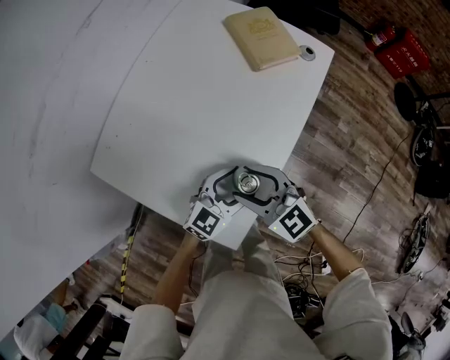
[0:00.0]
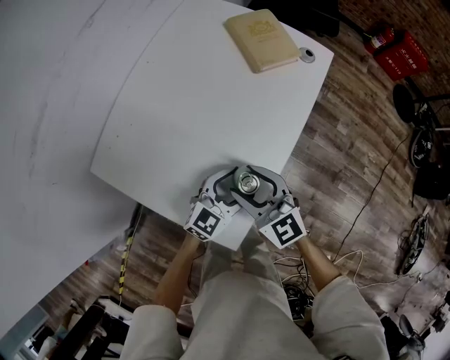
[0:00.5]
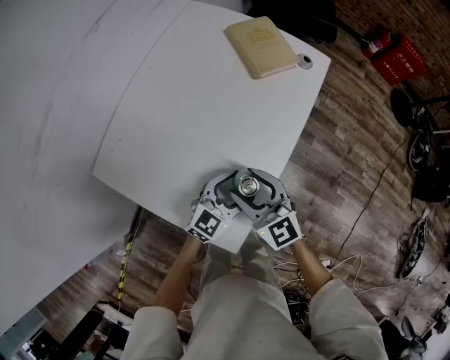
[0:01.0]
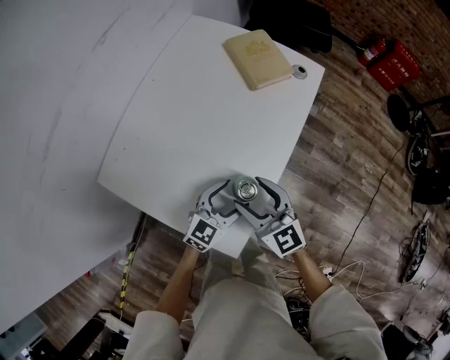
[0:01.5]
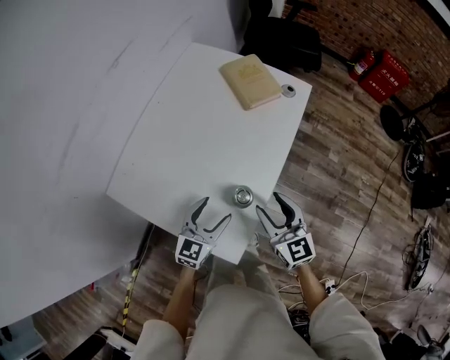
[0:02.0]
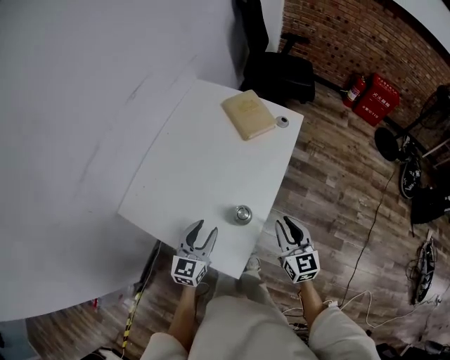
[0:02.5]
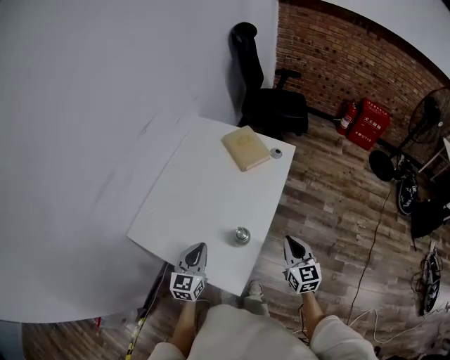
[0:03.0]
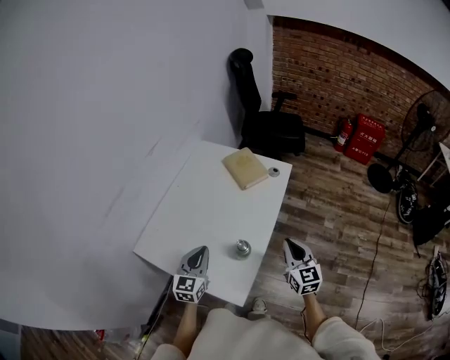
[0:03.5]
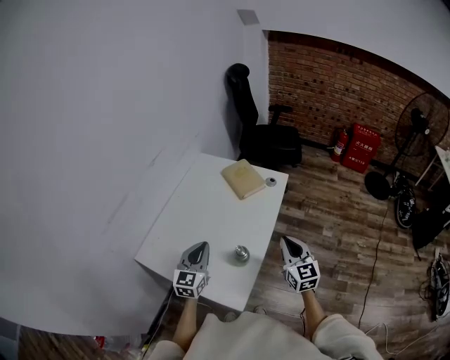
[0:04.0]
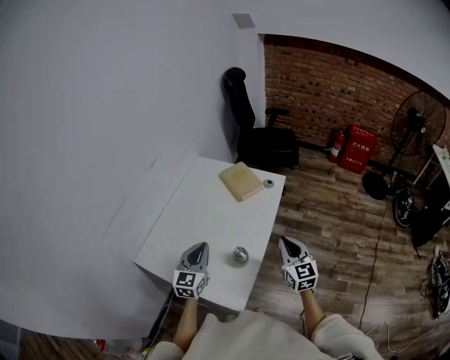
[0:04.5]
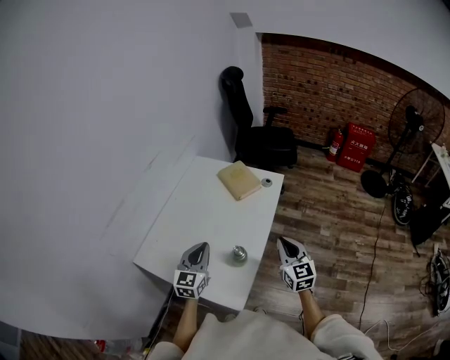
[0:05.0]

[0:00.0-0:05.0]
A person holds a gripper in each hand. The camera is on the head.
0:00.0 to 0:02.5: The right gripper shifts roughly 15 cm to the right, changes its angle by some 40 degrees, and closes; the left gripper shifts roughly 15 cm to the left and upward, rotates about 30 degrees, and closes.
0:02.5 to 0:05.0: Both grippers travel together upward, roughly 10 cm. The left gripper closes.

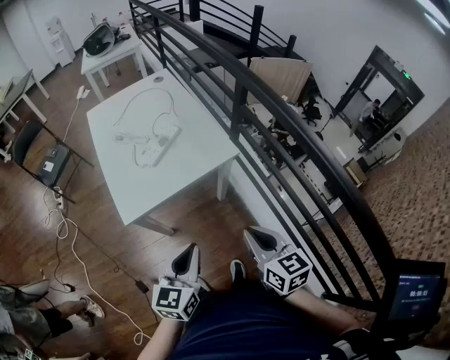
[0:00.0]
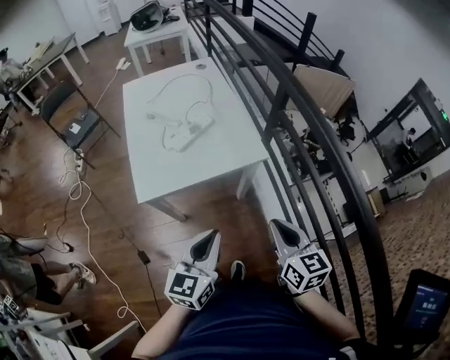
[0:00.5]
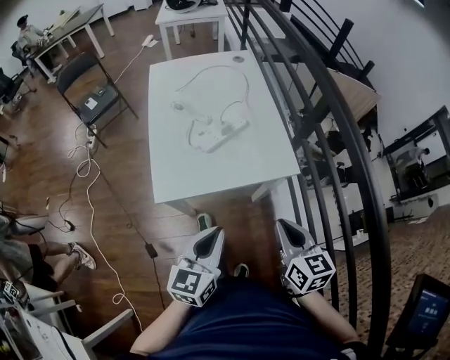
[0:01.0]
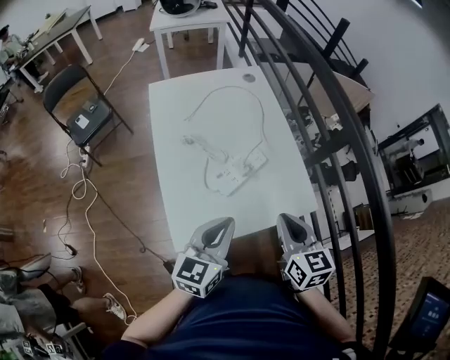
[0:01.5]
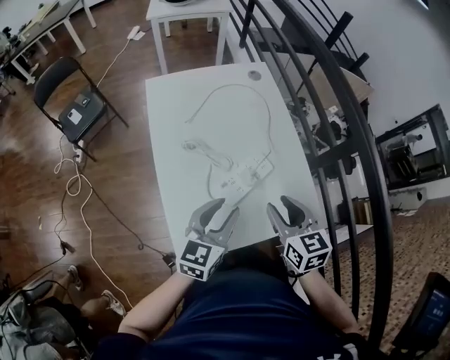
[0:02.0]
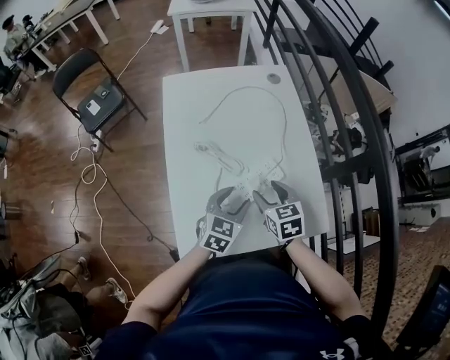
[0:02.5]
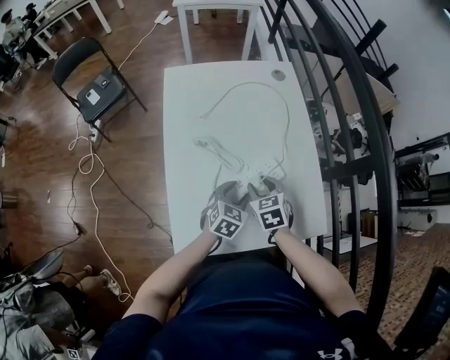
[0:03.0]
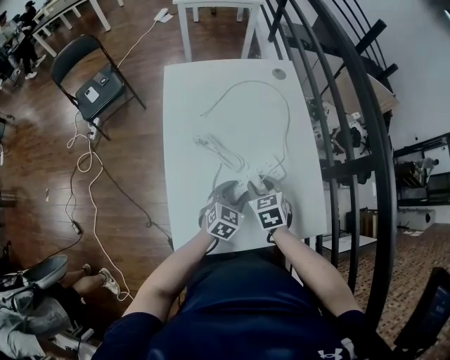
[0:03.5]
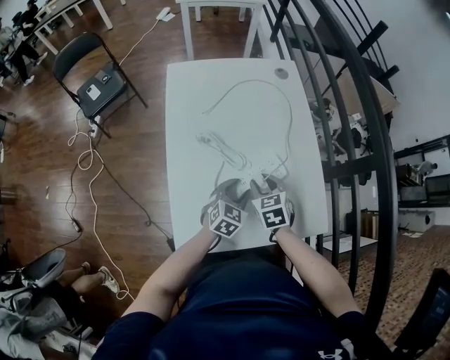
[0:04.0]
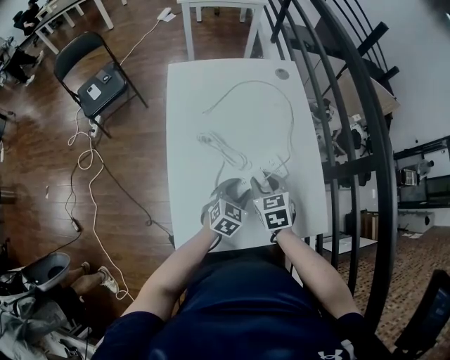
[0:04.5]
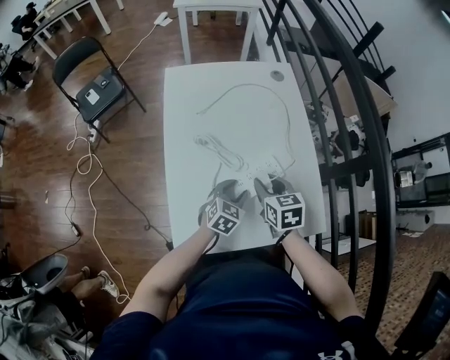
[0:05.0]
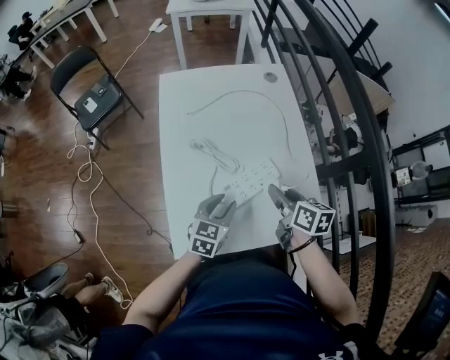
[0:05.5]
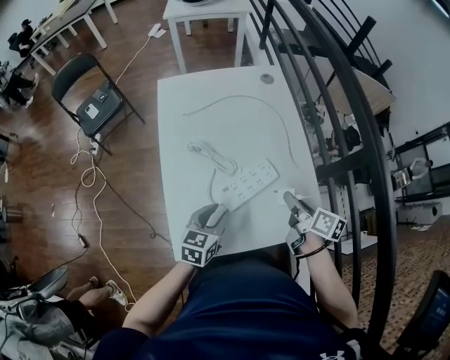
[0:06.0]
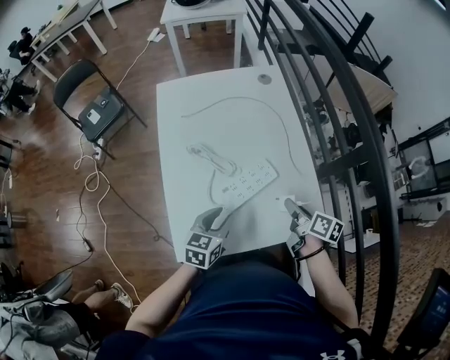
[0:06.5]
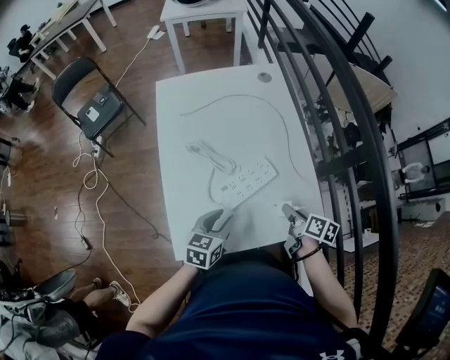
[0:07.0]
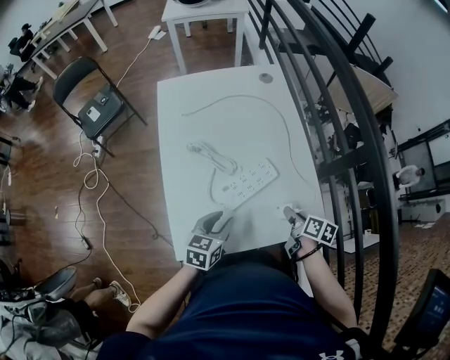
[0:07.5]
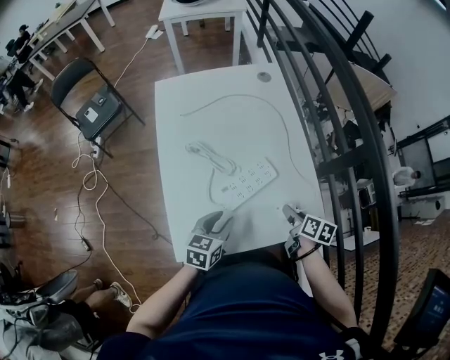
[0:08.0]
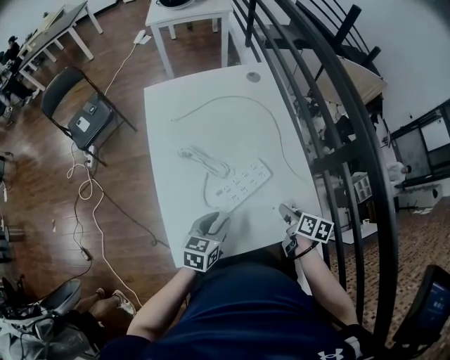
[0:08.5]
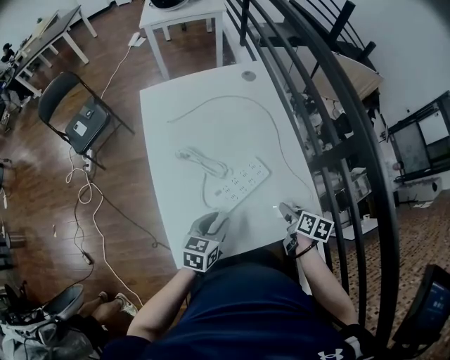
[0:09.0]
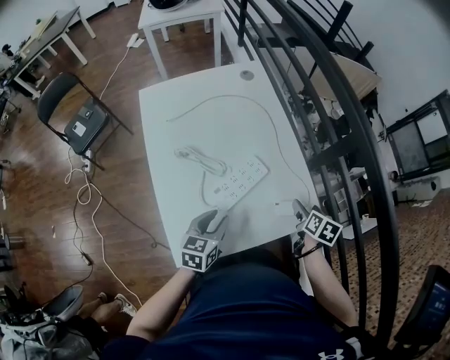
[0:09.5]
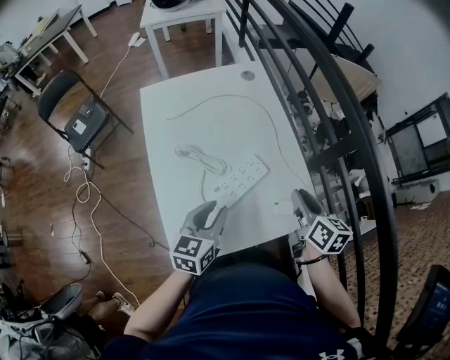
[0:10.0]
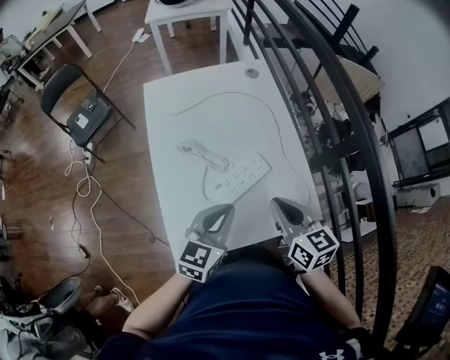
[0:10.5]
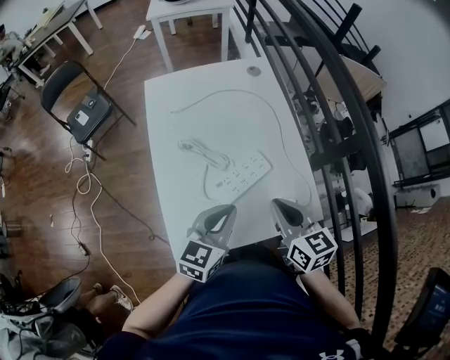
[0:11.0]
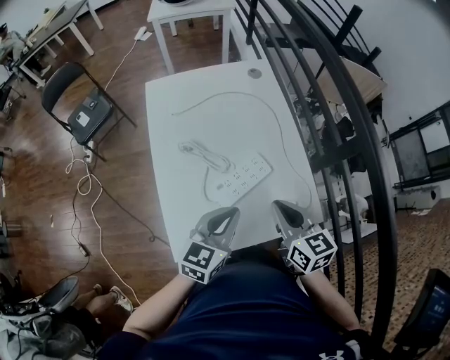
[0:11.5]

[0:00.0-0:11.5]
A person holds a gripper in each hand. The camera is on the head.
0:00.0 to 0:02.0: The grippers both shift forward and to the left by some 40 cm. The right gripper opens up. Meanwhile the left gripper opens its fingers.
0:02.0 to 0:04.0: The right gripper shifts roughly 20 cm downward, forward and to the left, and changes its angle by roughly 30 degrees. The left gripper travels downward by about 20 cm, and swivels approximately 30 degrees.
0:04.0 to 0:06.0: The left gripper heads upward and backward, covering about 10 cm, and rotates about 20 degrees. The right gripper is displaced to the right and upward by approximately 15 cm, and rotates around the line of its fingers by approximately 60 degrees, clockwise from behind.
0:06.0 to 0:07.5: The right gripper moves downward, approximately 10 cm.
0:07.5 to 0:09.5: The right gripper is displaced to the right by about 10 cm, changes its angle by about 30 degrees, and opens.
0:09.5 to 0:11.5: The right gripper shifts some 25 cm to the left and upward, swivels some 50 degrees, and closes up. The left gripper travels upward by about 10 cm, and closes up.

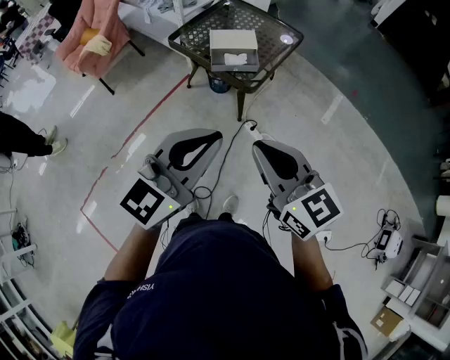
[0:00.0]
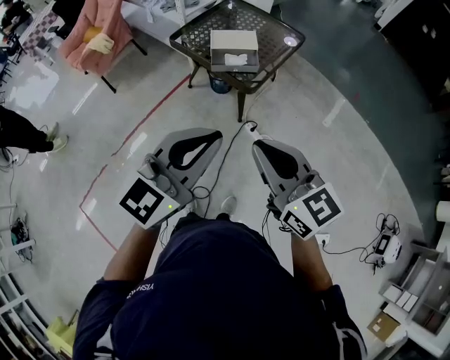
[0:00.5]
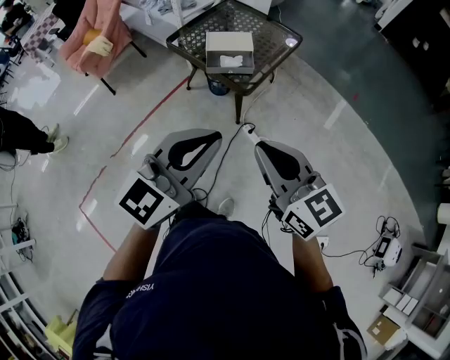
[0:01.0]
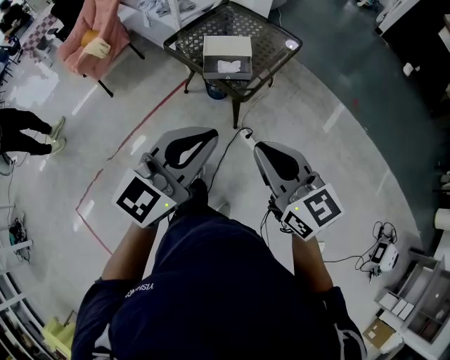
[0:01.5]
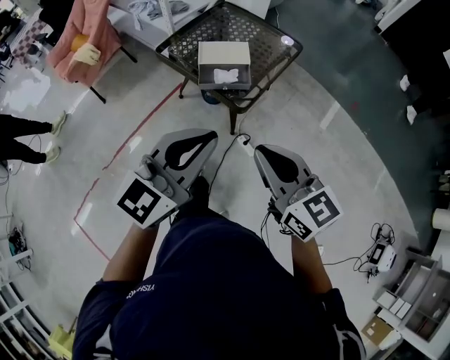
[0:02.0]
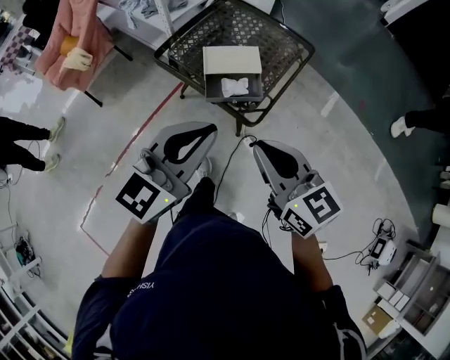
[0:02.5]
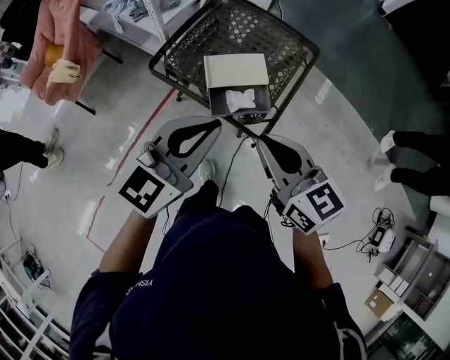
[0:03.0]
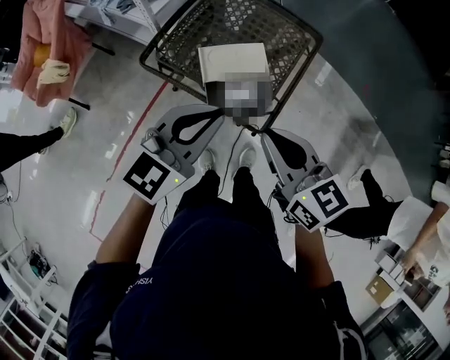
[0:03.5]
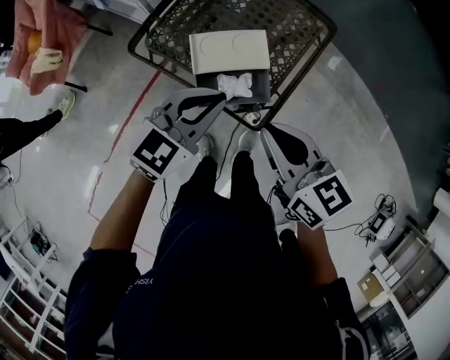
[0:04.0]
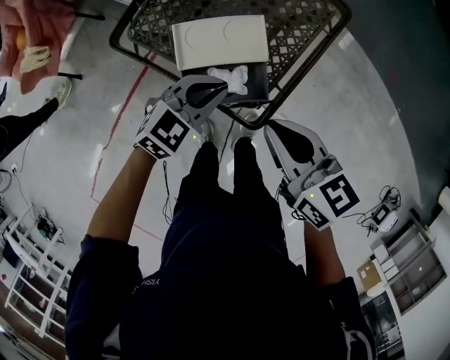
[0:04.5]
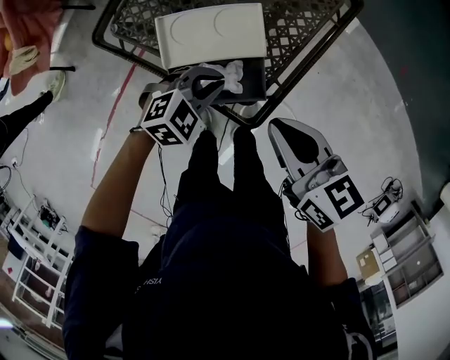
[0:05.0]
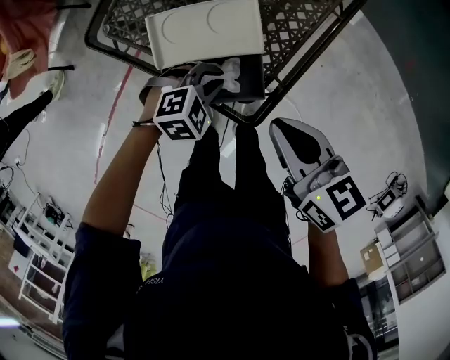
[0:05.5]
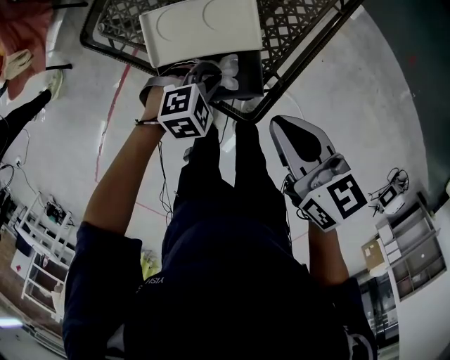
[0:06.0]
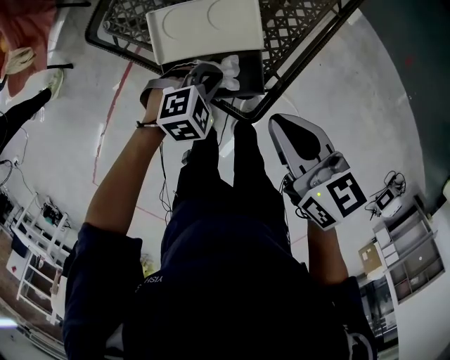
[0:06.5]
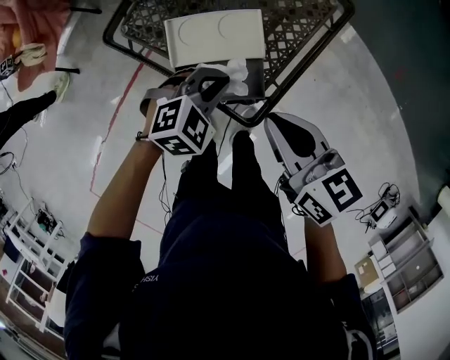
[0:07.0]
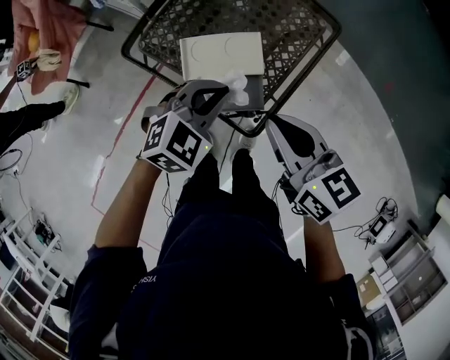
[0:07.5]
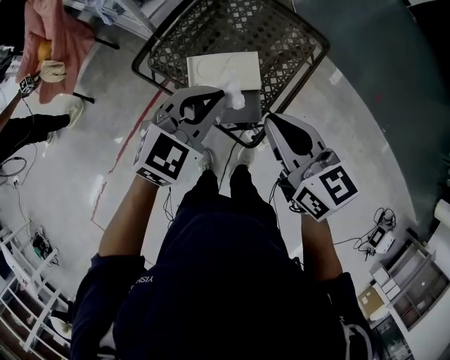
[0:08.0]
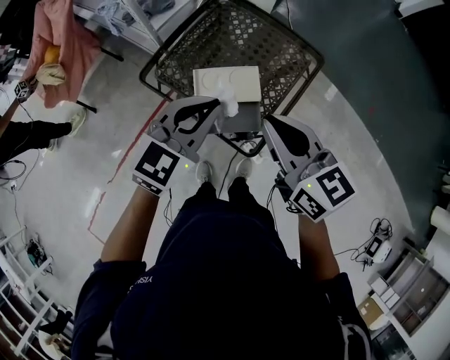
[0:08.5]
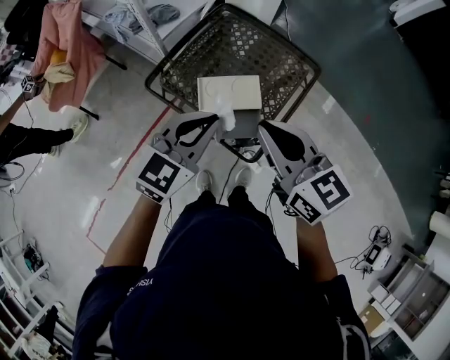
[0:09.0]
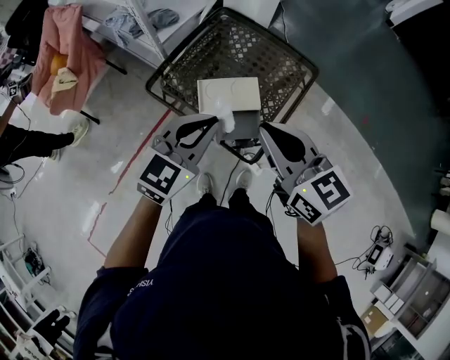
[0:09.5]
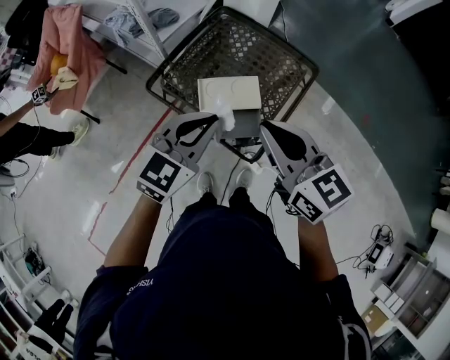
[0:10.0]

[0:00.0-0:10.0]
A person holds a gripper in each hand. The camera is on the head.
0:00.0 to 0:02.0: The right gripper is displaced forward and to the right by roughly 15 cm; the left gripper travels forward by about 15 cm.
0:02.0 to 0:04.0: The left gripper goes roughly 40 cm forward and downward, and rotates about 20 degrees. Meanwhile the right gripper is displaced forward by approximately 30 cm.
0:04.0 to 0:06.0: The right gripper shifts about 15 cm downward, forward and to the right. Meanwhile the left gripper travels downward by roughly 30 cm, and tilts its fingers roughly 40 degrees downward.
0:06.0 to 0:08.0: The left gripper goes about 35 cm upward, and tips its fingers upward by some 40 degrees. Meanwhile the right gripper heads upward, covering some 20 cm, and turns by roughly 20 degrees.
0:08.0 to 0:10.0: The left gripper shifts some 10 cm upward and backward; the right gripper shifts approximately 10 cm upward.
